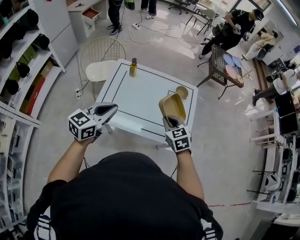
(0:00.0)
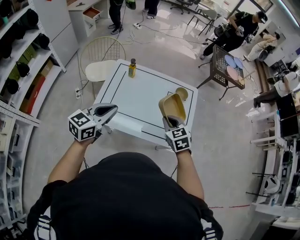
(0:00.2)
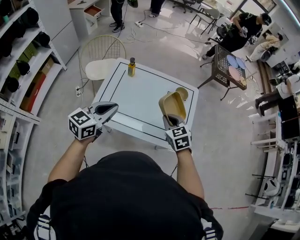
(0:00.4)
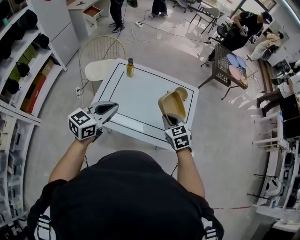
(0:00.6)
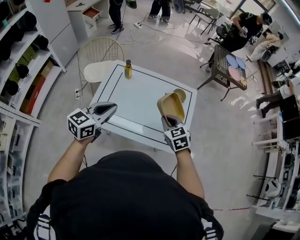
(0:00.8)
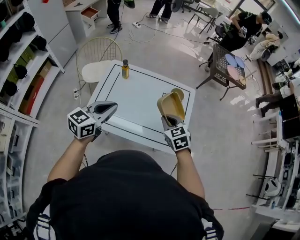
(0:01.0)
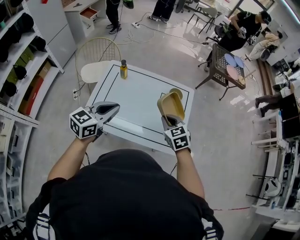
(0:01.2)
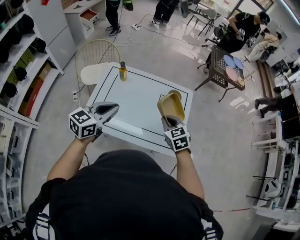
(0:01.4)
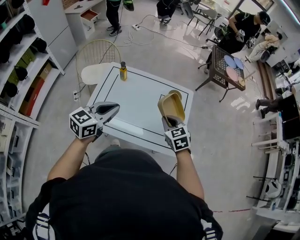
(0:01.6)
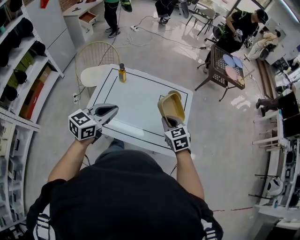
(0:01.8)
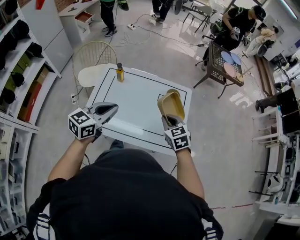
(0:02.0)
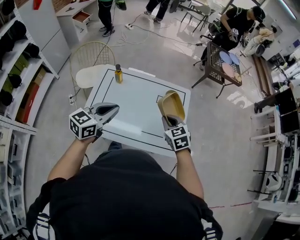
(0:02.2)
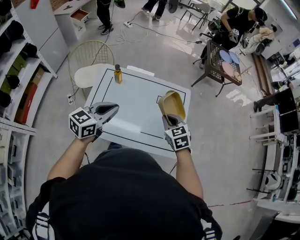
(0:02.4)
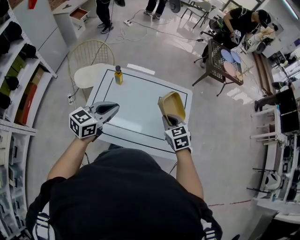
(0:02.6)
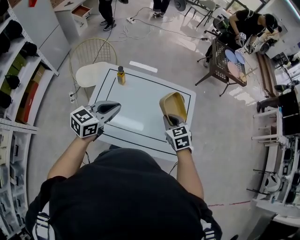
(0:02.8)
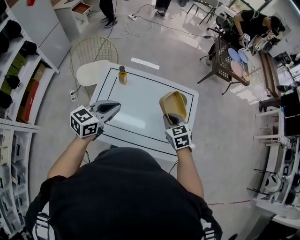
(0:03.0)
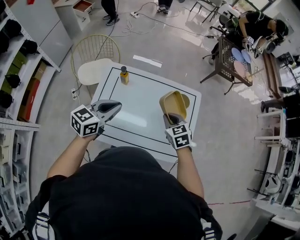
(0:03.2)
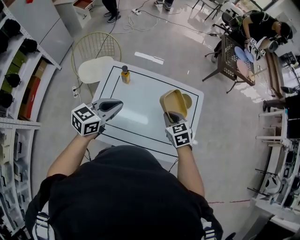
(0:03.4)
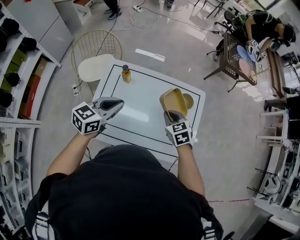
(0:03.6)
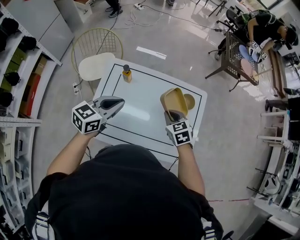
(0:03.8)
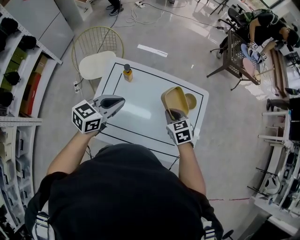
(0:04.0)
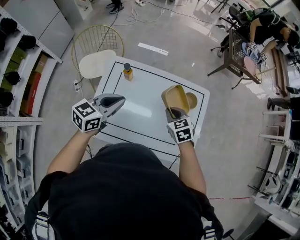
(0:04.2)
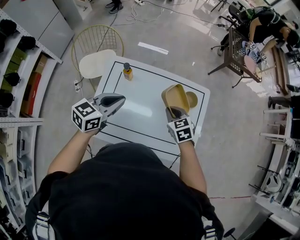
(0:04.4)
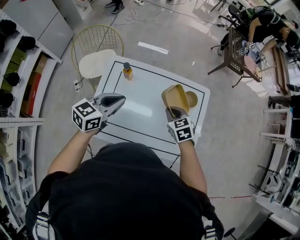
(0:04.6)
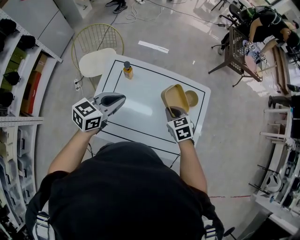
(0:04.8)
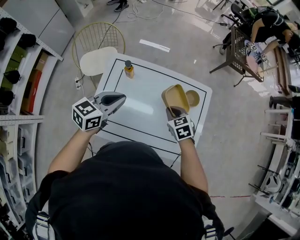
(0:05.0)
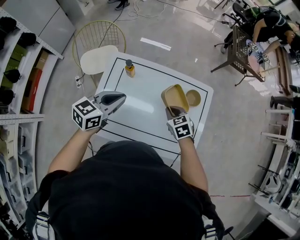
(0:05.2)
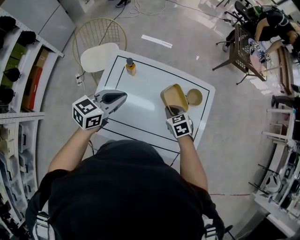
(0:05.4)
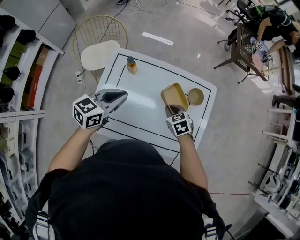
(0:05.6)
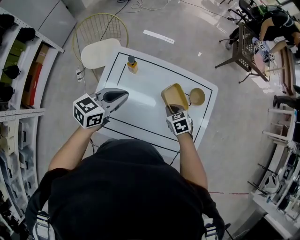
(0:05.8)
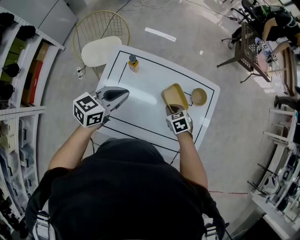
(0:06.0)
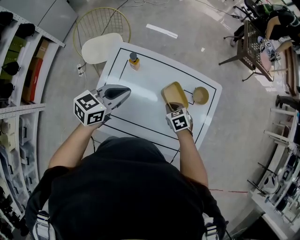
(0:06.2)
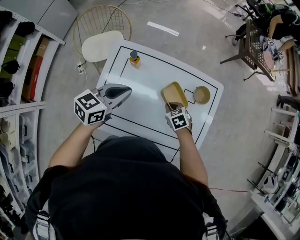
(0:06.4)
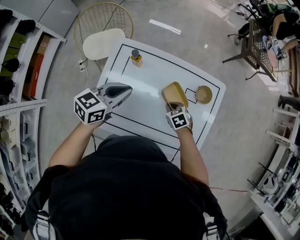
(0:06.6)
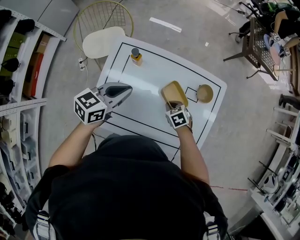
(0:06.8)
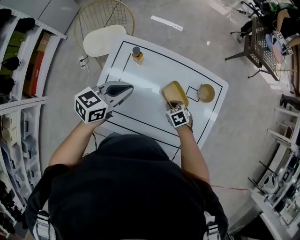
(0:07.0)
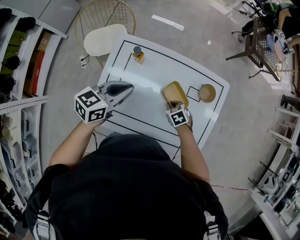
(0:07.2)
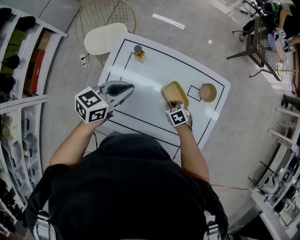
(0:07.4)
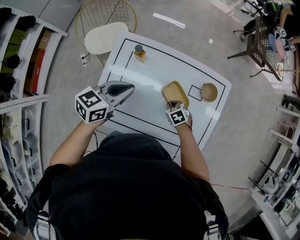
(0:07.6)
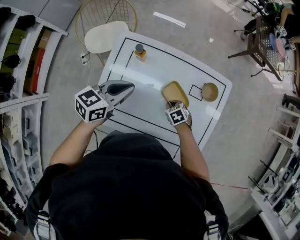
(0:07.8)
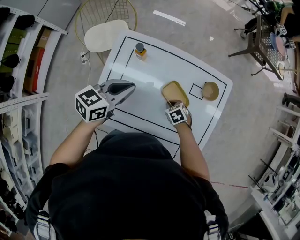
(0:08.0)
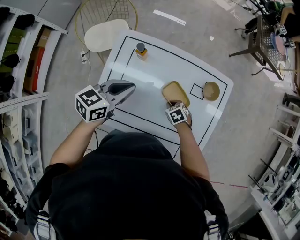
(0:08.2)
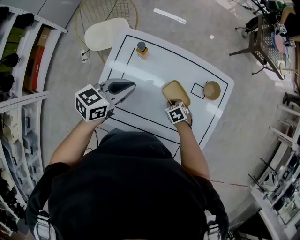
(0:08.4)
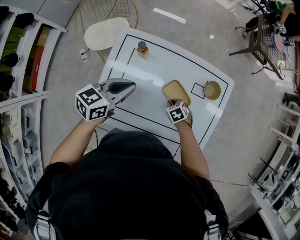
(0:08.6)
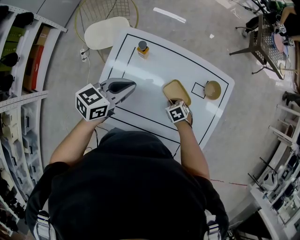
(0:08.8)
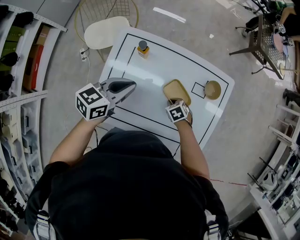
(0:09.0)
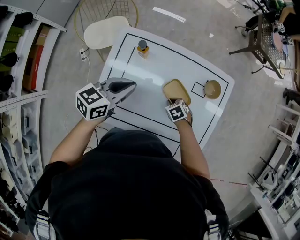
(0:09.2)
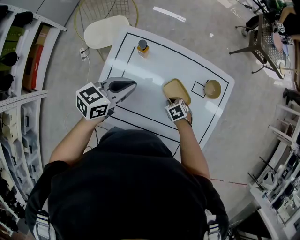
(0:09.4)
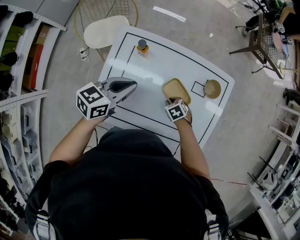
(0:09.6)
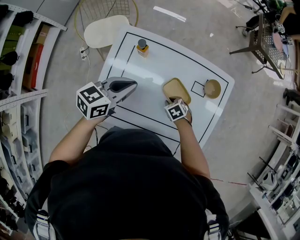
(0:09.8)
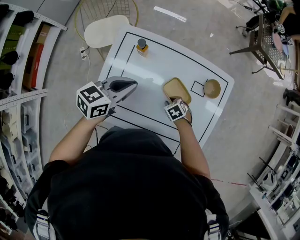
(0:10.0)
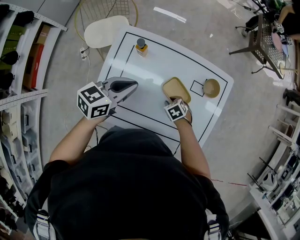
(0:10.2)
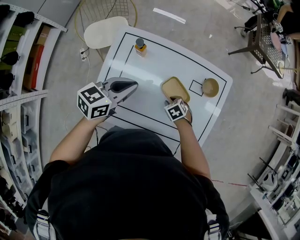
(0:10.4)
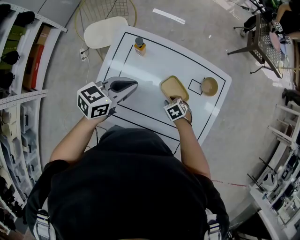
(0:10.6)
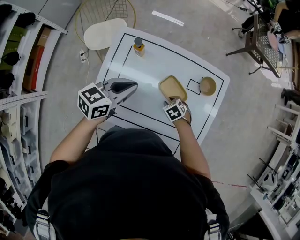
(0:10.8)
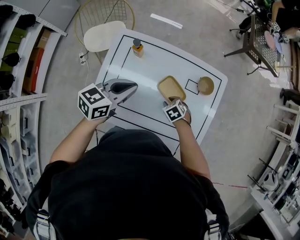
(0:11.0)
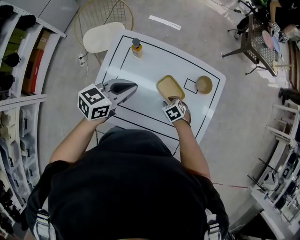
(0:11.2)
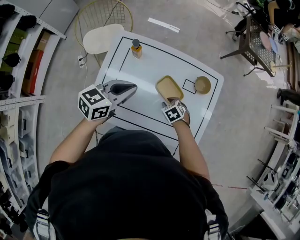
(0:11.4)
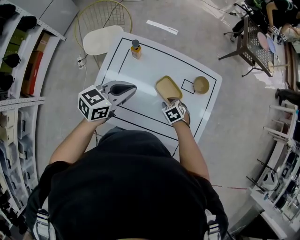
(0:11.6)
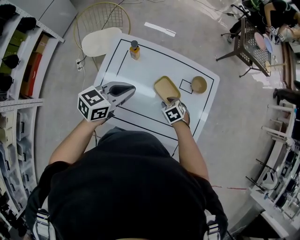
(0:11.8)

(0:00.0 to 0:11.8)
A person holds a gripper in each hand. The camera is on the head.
0:00.0 - 0:01.4: The left gripper moves to the right and forward, about 10 cm. Meanwhile the right gripper moves forward and to the right, some 10 cm.
0:01.4 - 0:03.0: The grippers both shift forward by some 10 cm.
0:03.0 - 0:04.4: The right gripper heads forward and downward, covering some 10 cm. The left gripper is displaced forward by about 5 cm.
0:04.4 - 0:06.0: The right gripper shifts approximately 10 cm downward.
0:06.0 - 0:07.4: The right gripper is displaced downward by about 10 cm.
0:07.4 - 0:08.8: The grippers move only a little.
0:08.8 - 0:10.4: The right gripper opens up.
0:10.4 - 0:11.8: The right gripper goes approximately 5 cm upward; the left gripper moves roughly 5 cm.

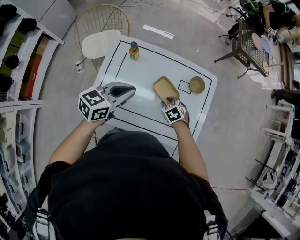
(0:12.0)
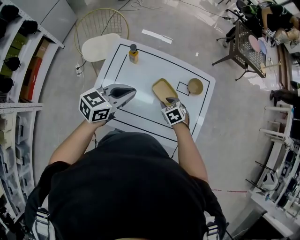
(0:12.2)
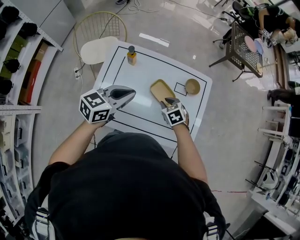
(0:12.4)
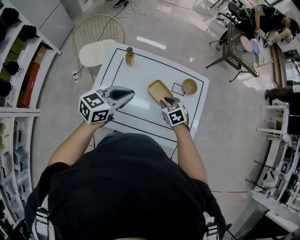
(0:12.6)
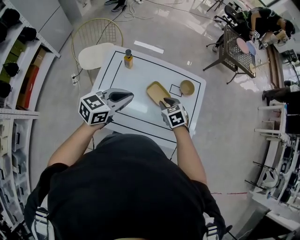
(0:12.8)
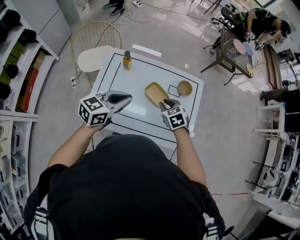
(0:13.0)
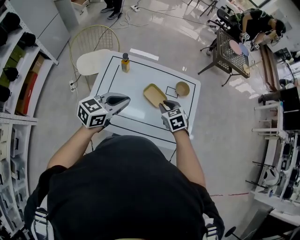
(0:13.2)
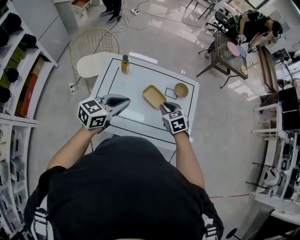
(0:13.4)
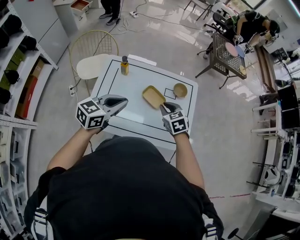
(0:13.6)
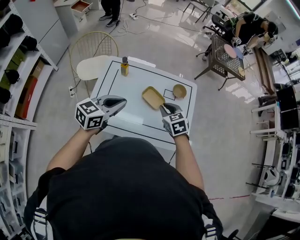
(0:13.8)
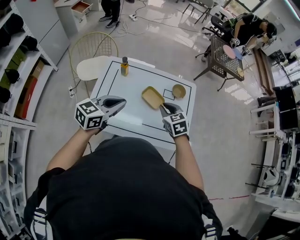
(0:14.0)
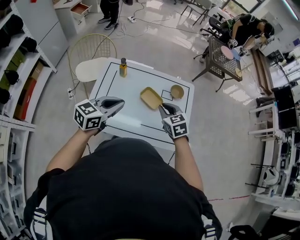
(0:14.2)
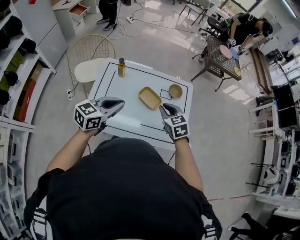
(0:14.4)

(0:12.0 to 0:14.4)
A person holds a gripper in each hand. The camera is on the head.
0:12.0 - 0:13.2: The left gripper heads backward, covering about 5 cm; the right gripper travels upward by about 15 cm.
0:13.2 - 0:14.4: The right gripper heads upward, covering about 10 cm.

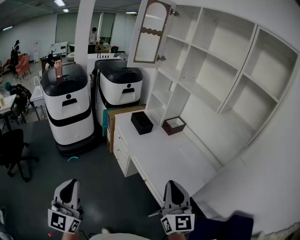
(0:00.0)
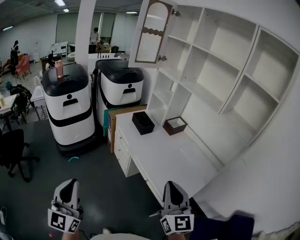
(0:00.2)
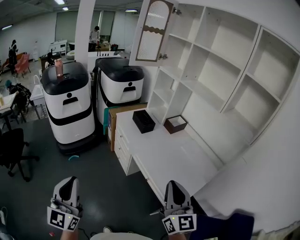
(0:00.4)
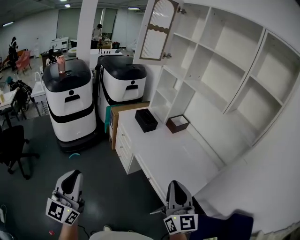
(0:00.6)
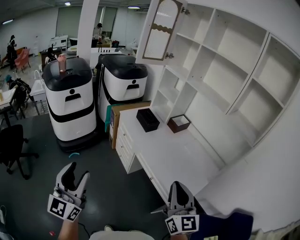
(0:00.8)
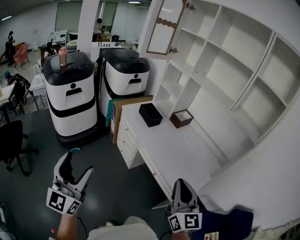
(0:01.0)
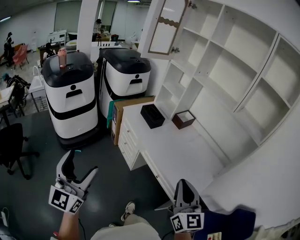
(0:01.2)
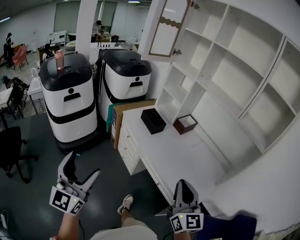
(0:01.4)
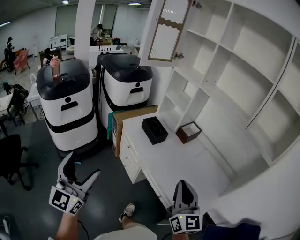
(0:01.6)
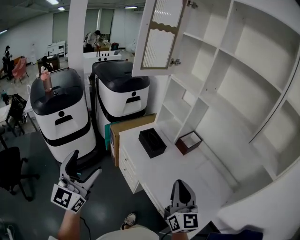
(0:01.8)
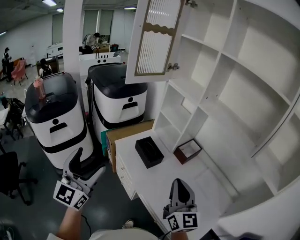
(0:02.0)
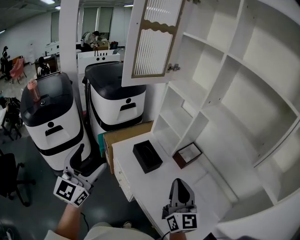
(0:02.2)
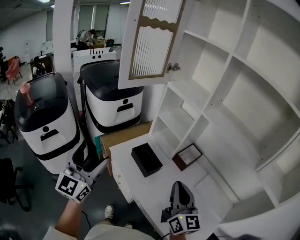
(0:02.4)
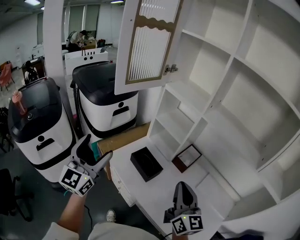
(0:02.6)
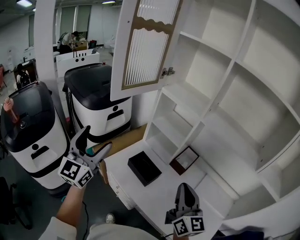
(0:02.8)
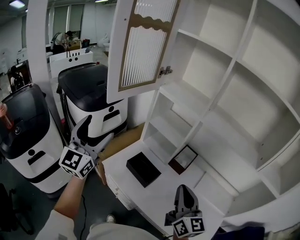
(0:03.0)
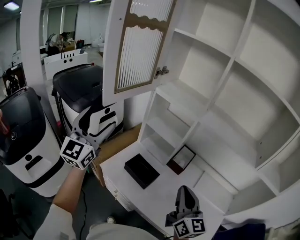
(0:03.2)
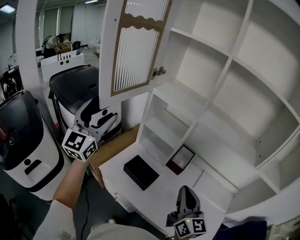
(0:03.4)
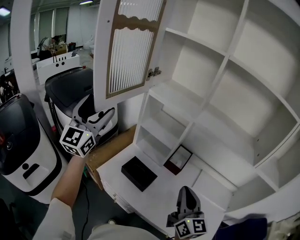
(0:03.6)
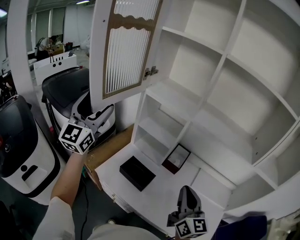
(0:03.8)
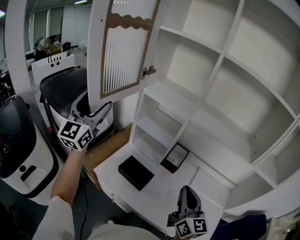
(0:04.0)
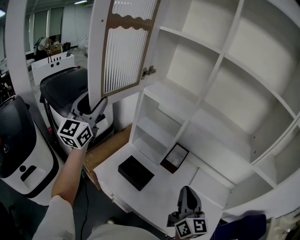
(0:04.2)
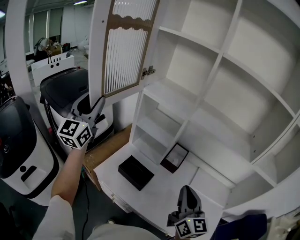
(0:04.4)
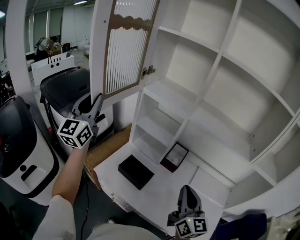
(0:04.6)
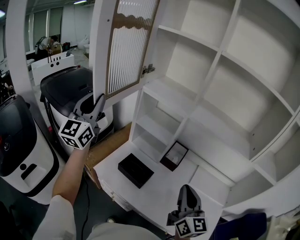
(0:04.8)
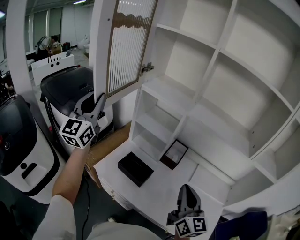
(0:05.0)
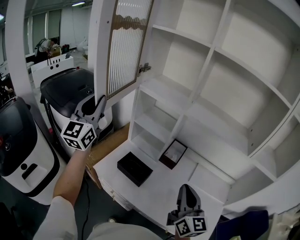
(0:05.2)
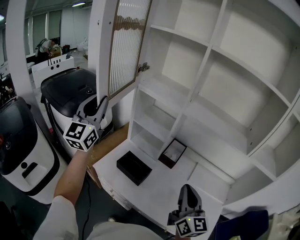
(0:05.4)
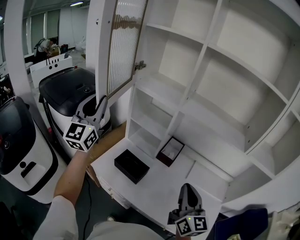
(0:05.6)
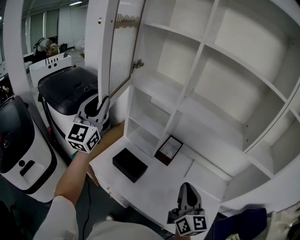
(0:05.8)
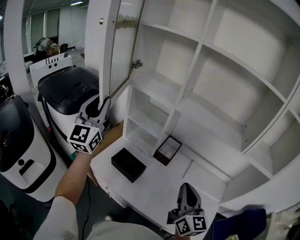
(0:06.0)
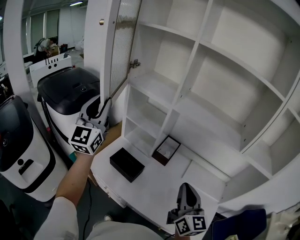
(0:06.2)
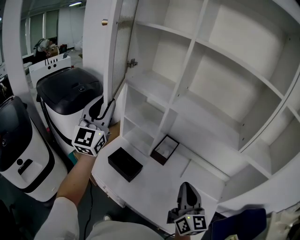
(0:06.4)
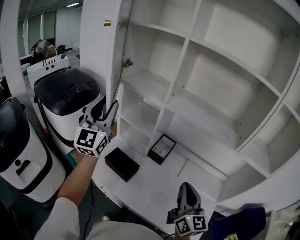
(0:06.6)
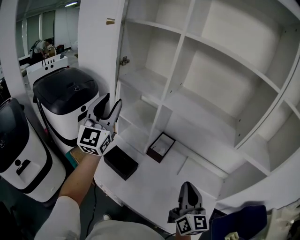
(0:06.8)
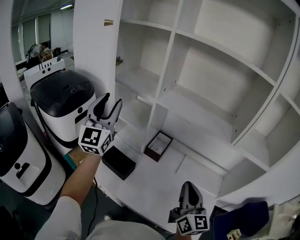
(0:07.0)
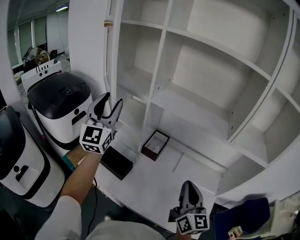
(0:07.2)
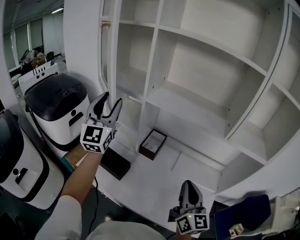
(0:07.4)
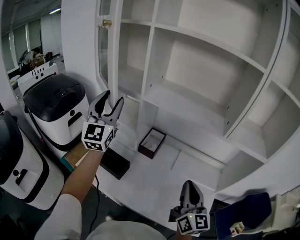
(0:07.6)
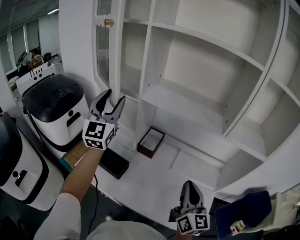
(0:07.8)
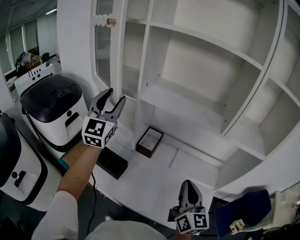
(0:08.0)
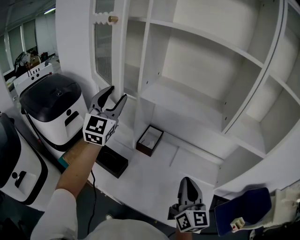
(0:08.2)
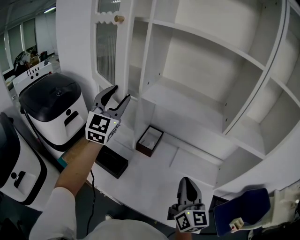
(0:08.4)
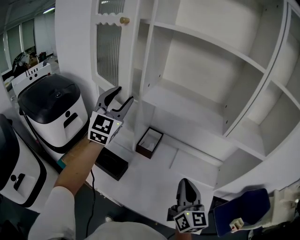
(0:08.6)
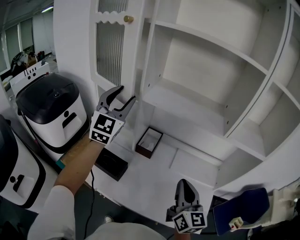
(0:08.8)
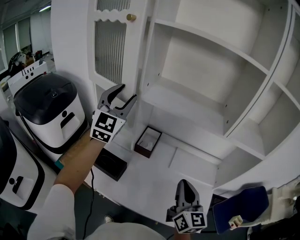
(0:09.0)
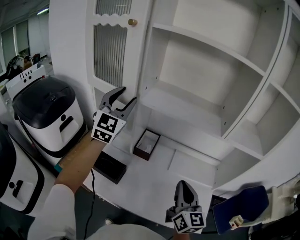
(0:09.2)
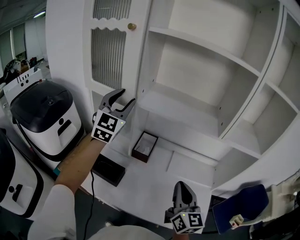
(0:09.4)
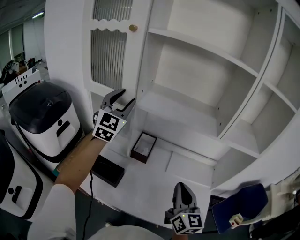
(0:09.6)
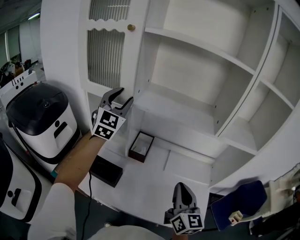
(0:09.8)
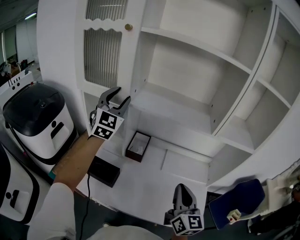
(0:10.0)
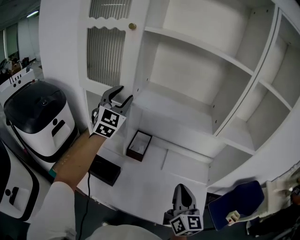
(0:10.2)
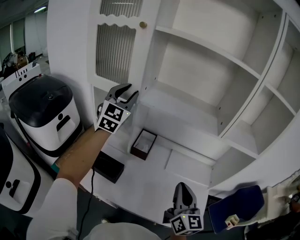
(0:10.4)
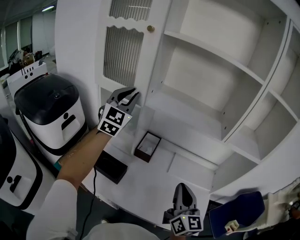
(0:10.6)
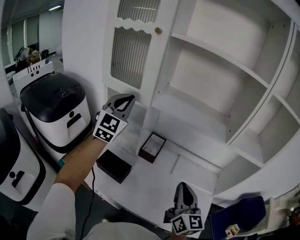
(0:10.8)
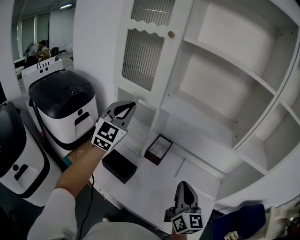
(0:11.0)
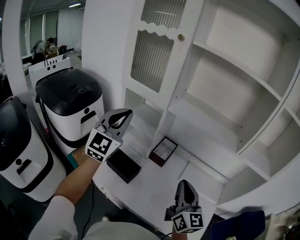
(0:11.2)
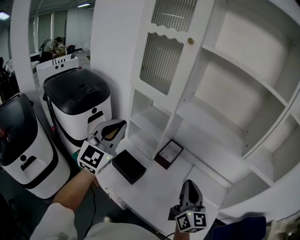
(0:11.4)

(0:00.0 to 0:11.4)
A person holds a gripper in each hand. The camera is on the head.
0:00.0 - 0:01.4: The right gripper goes approximately 10 cm forward and to the left; the left gripper heads forward and to the left, covering approximately 20 cm, and opens its fingers.
0:01.4 - 0:02.8: The two grippers travel together, forward, some 50 cm.
0:02.8 - 0:04.2: The left gripper is displaced forward and upward by about 20 cm.
0:04.2 - 0:05.6: The right gripper ends up some 5 cm from where it was, while the left gripper is displaced to the right by roughly 5 cm, and closes up.
0:05.6 - 0:07.2: The right gripper is displaced to the right by some 10 cm. The left gripper heads to the right, covering approximately 20 cm.
0:07.2 - 0:08.6: The left gripper moves to the right and forward, approximately 10 cm.
0:08.6 - 0:10.0: The left gripper travels forward by some 5 cm.
0:10.0 - 0:11.4: The left gripper is displaced backward and to the left by about 25 cm, and closes up, while the right gripper goes approximately 10 cm to the left.
